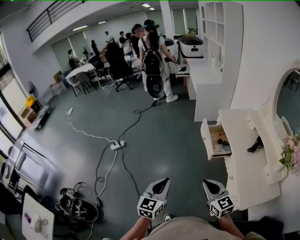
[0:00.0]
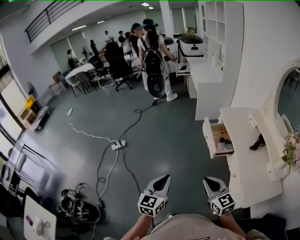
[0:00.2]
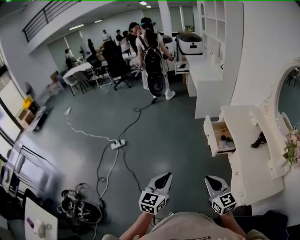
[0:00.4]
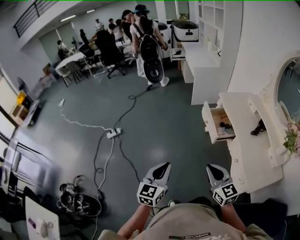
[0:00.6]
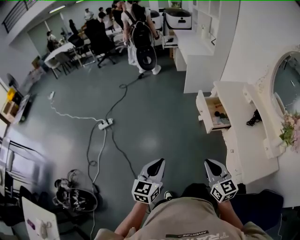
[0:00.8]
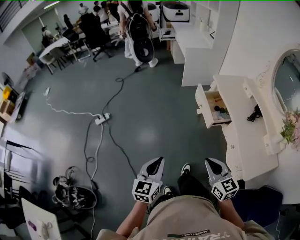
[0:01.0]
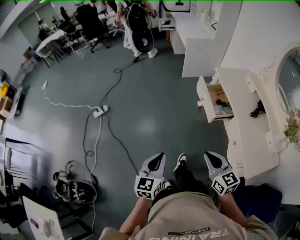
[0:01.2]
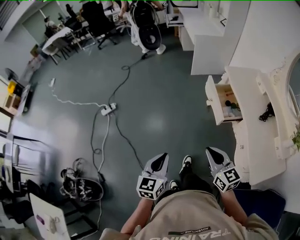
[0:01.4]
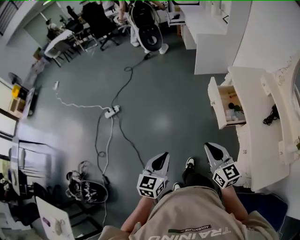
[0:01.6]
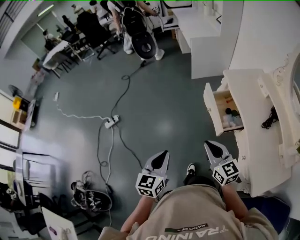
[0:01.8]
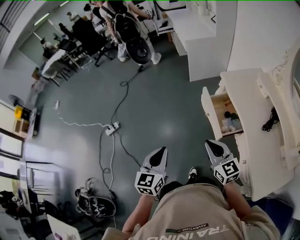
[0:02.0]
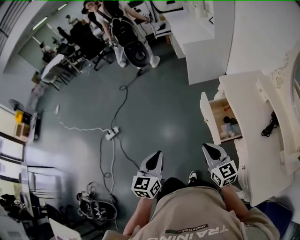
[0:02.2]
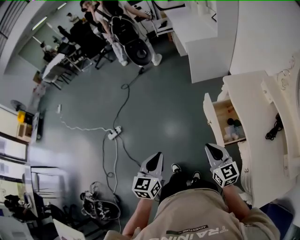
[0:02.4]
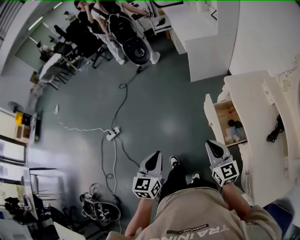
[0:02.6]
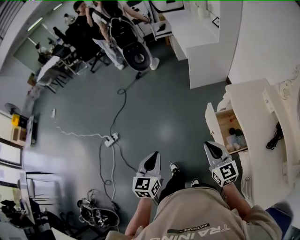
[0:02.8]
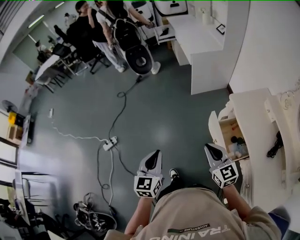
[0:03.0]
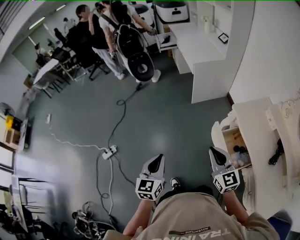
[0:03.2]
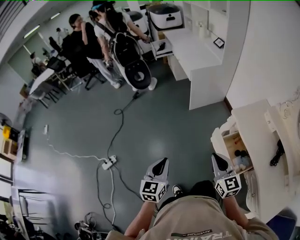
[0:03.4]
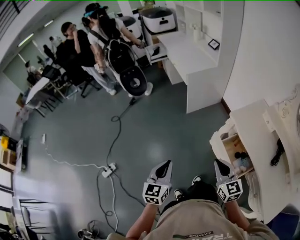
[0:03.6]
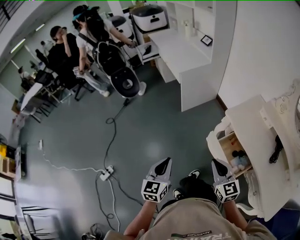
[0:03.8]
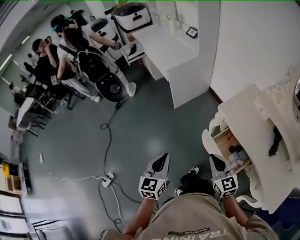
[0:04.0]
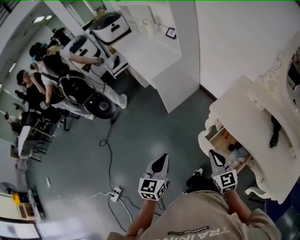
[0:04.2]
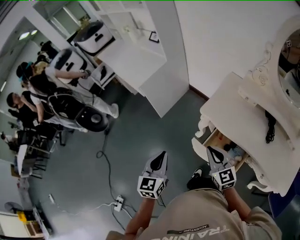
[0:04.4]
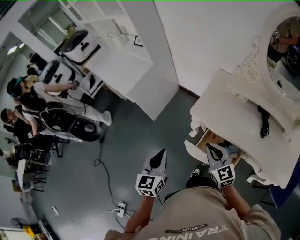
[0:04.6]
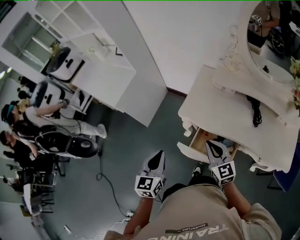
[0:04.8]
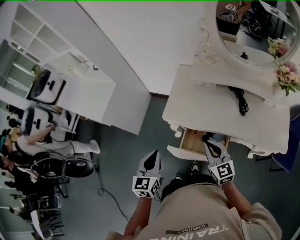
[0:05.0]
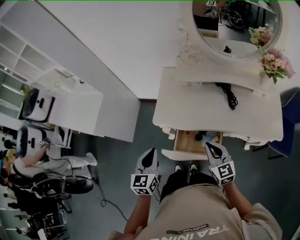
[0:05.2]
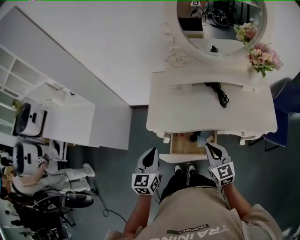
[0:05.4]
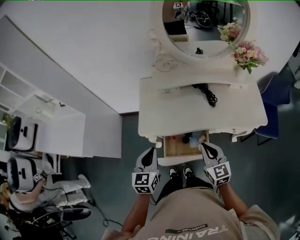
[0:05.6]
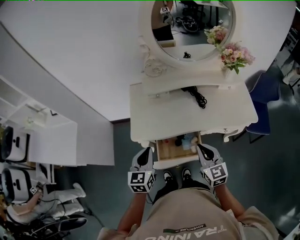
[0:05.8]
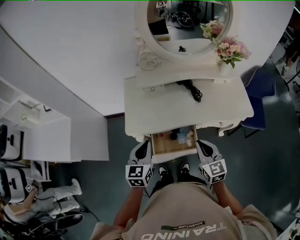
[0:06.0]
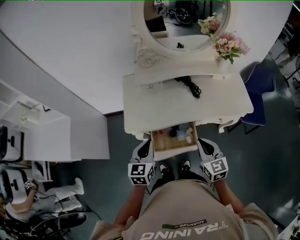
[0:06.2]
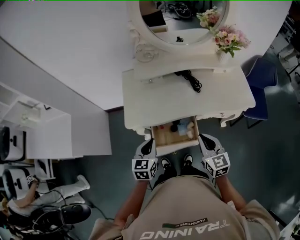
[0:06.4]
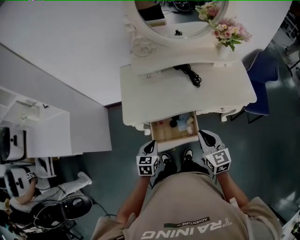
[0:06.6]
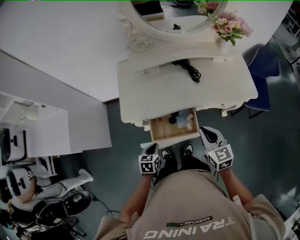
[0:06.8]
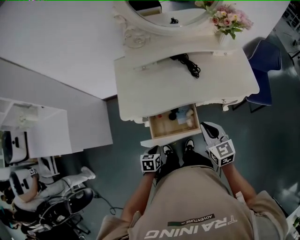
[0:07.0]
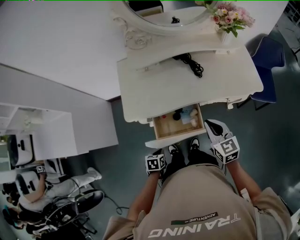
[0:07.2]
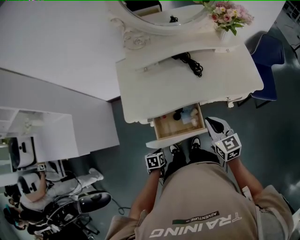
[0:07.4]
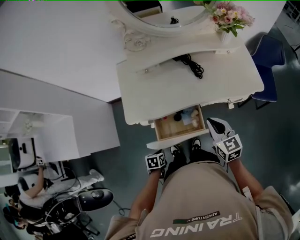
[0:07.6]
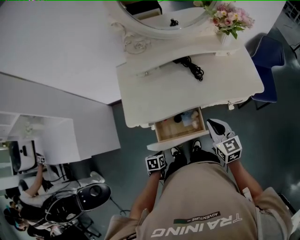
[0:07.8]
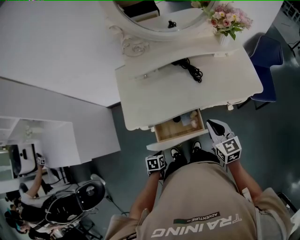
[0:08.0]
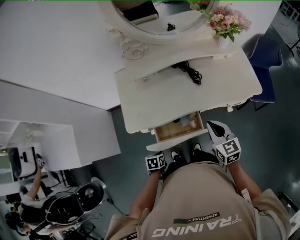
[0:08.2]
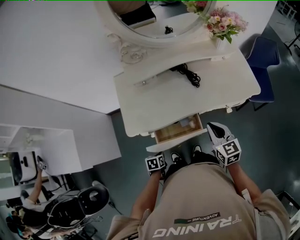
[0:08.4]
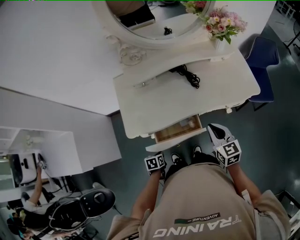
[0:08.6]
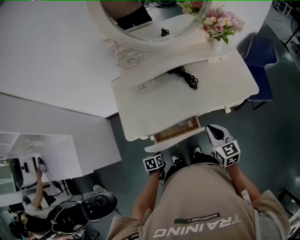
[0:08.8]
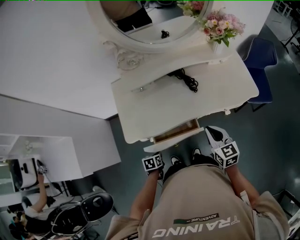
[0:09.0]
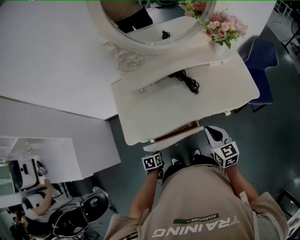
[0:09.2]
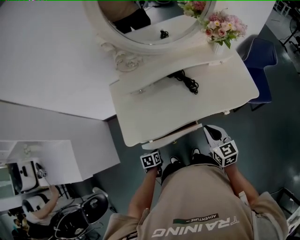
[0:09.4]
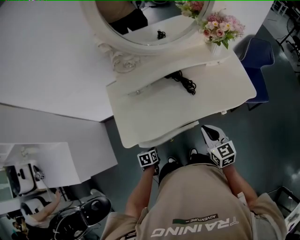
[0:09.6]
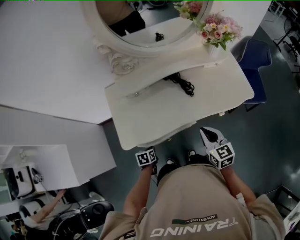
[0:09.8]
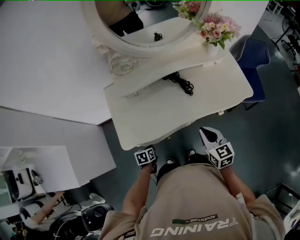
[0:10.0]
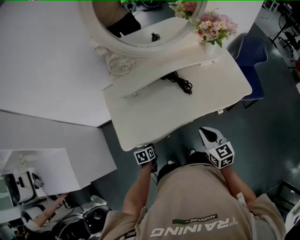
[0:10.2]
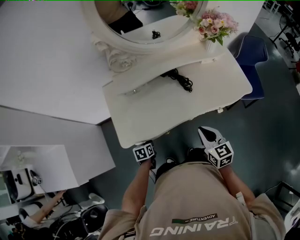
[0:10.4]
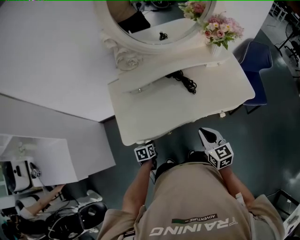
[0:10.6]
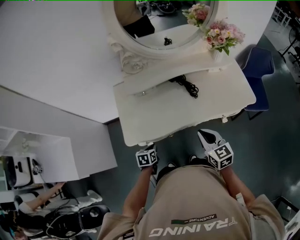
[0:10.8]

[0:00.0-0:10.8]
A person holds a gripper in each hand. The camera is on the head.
0:00.0 to 0:01.6: The right gripper shifts about 15 cm forward. Meanwhile the left gripper travels forward and downward by some 15 cm.
0:01.6 to 0:03.0: Both grippers travel together forward, some 30 cm.
0:03.0 to 0:04.6: The left gripper ends up roughly 35 cm from where it was, and changes its angle by roughly 40 degrees. The right gripper moves roughly 25 cm, and changes its angle by approximately 40 degrees.
0:04.6 to 0:06.2: The left gripper moves some 20 cm, and swivels some 40 degrees, while the right gripper ends up approximately 20 cm from where it was, and changes its angle by some 50 degrees.
0:06.2 to 0:07.8: The left gripper shifts some 25 cm downward, and tips its fingers downward by approximately 40 degrees; the right gripper is displaced forward by some 5 cm.
0:07.8 to 0:09.2: The left gripper goes approximately 10 cm forward.
0:09.2 to 0:10.8: The left gripper moves forward and upward, roughly 10 cm.

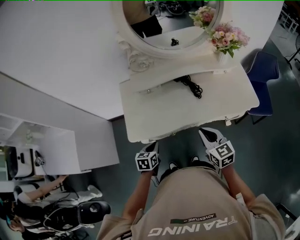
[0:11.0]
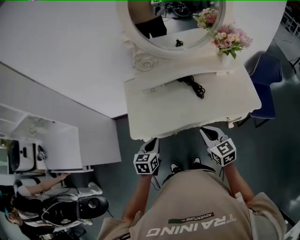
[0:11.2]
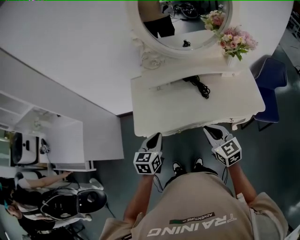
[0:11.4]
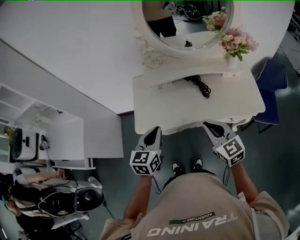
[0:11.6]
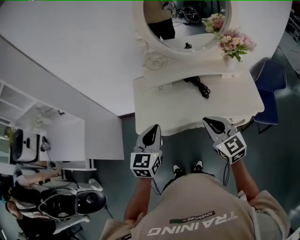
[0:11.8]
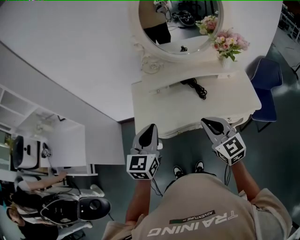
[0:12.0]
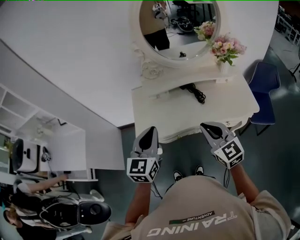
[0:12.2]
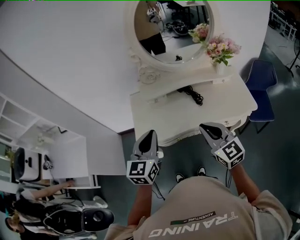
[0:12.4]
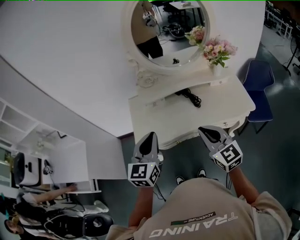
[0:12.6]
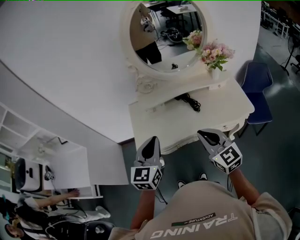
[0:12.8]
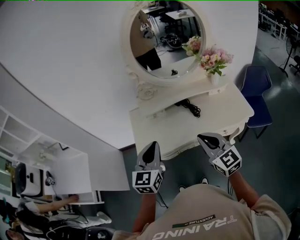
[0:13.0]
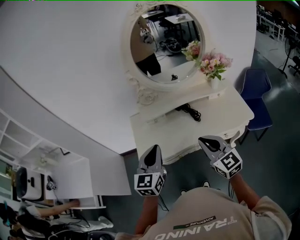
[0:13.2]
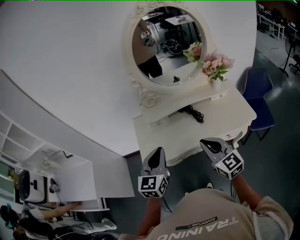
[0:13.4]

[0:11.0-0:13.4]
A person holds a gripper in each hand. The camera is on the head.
0:11.0 to 0:12.2: The left gripper travels upward by approximately 30 cm, and angles its fingers upward, by about 40 degrees. The right gripper moves upward, about 15 cm, and turns by about 20 degrees.
0:12.2 to 0:13.4: The grippers stay close to where they were, moving slightly.

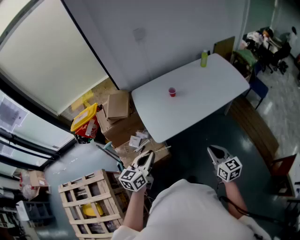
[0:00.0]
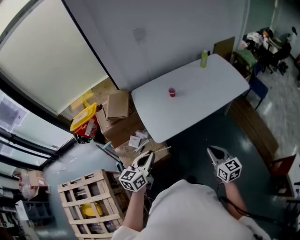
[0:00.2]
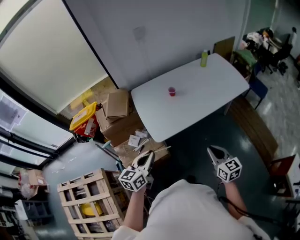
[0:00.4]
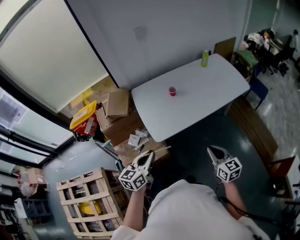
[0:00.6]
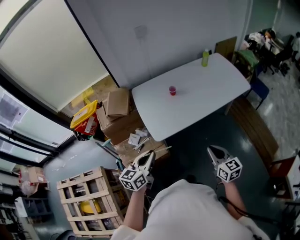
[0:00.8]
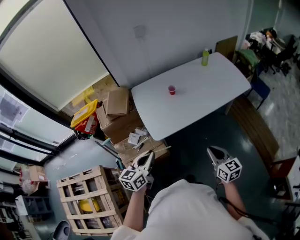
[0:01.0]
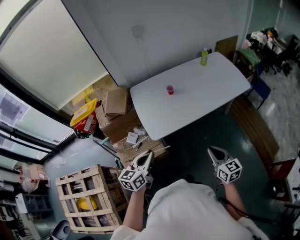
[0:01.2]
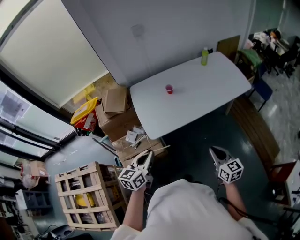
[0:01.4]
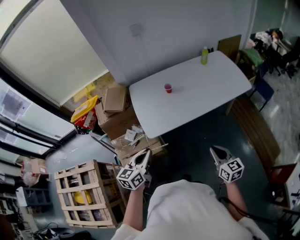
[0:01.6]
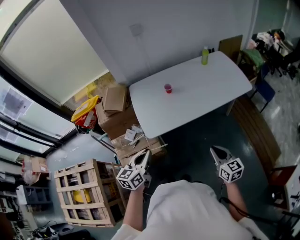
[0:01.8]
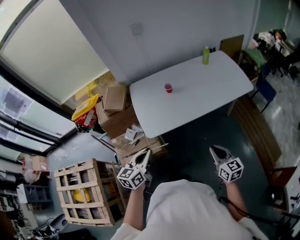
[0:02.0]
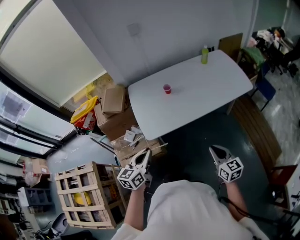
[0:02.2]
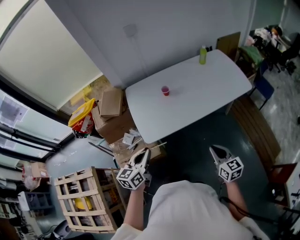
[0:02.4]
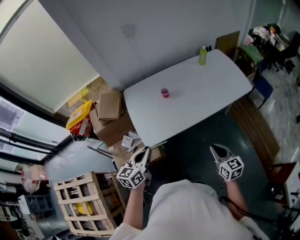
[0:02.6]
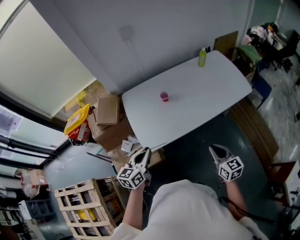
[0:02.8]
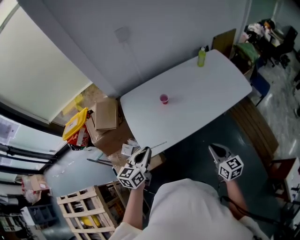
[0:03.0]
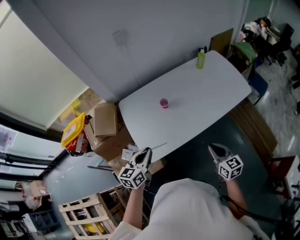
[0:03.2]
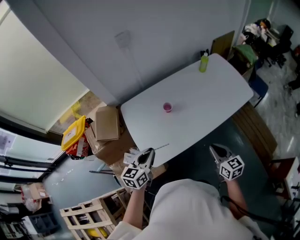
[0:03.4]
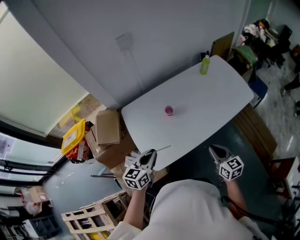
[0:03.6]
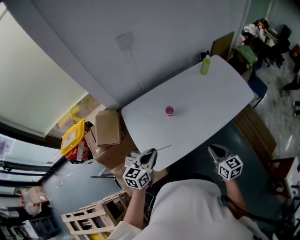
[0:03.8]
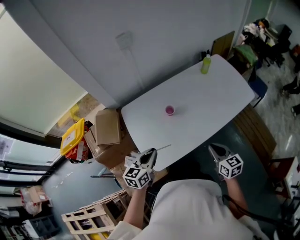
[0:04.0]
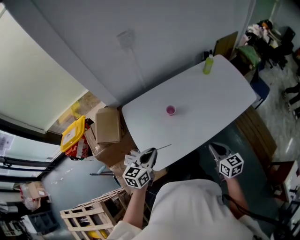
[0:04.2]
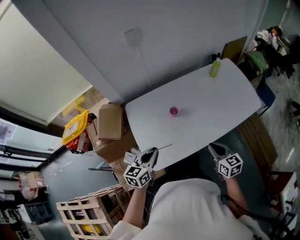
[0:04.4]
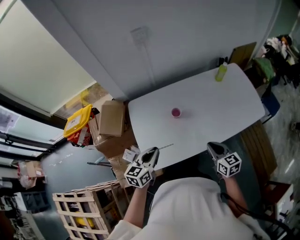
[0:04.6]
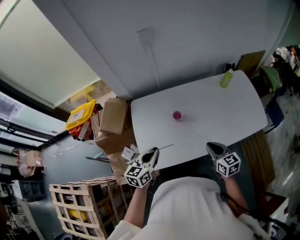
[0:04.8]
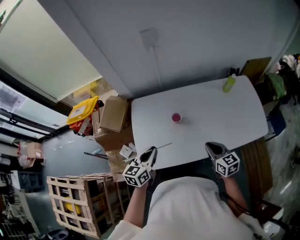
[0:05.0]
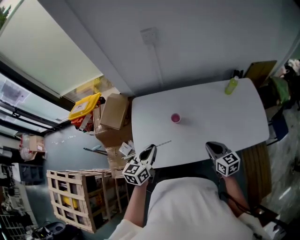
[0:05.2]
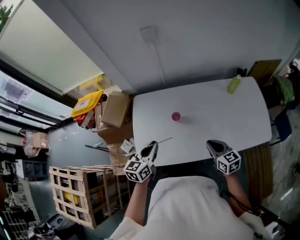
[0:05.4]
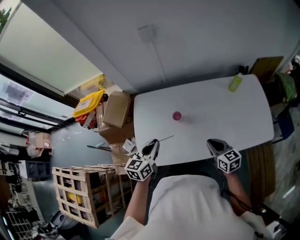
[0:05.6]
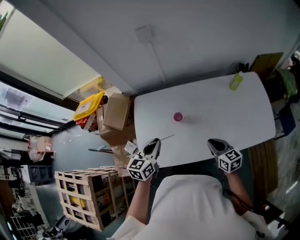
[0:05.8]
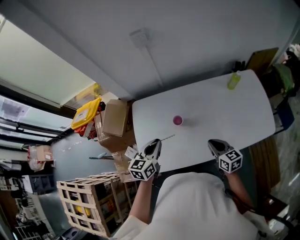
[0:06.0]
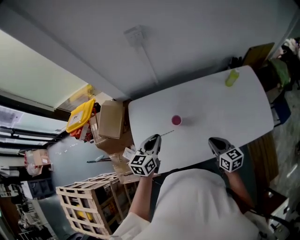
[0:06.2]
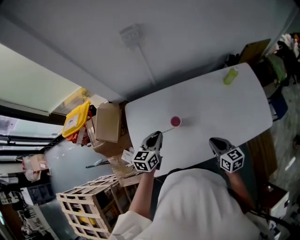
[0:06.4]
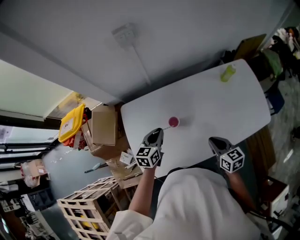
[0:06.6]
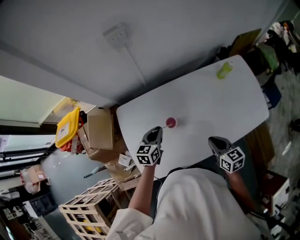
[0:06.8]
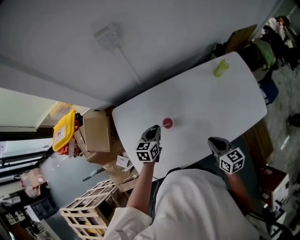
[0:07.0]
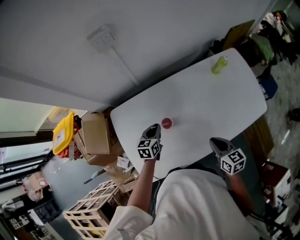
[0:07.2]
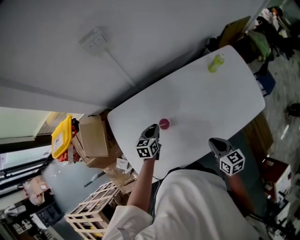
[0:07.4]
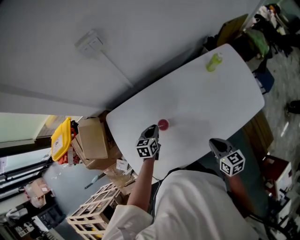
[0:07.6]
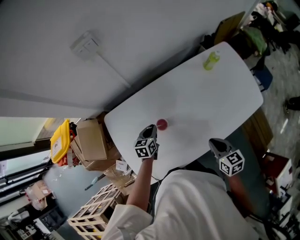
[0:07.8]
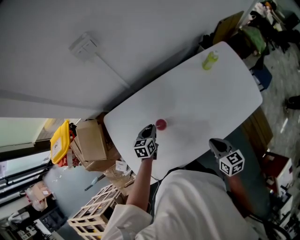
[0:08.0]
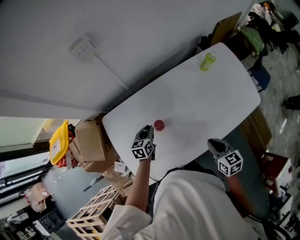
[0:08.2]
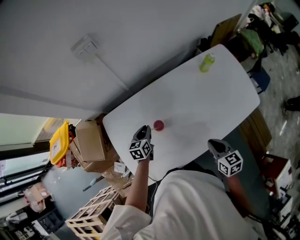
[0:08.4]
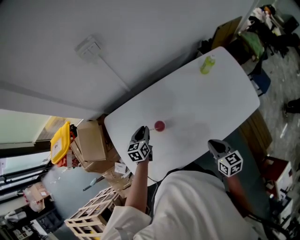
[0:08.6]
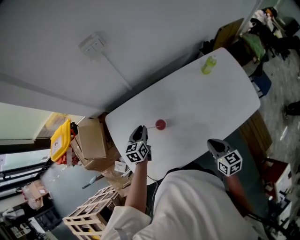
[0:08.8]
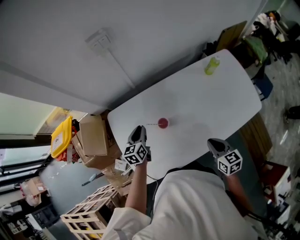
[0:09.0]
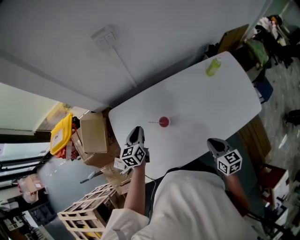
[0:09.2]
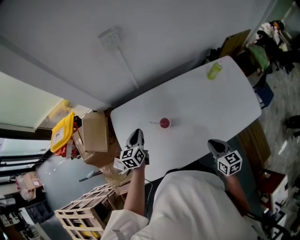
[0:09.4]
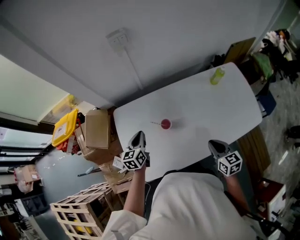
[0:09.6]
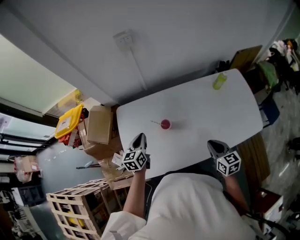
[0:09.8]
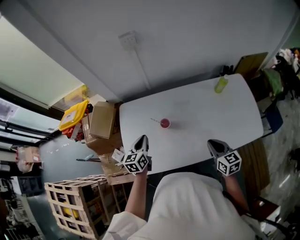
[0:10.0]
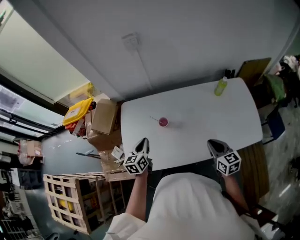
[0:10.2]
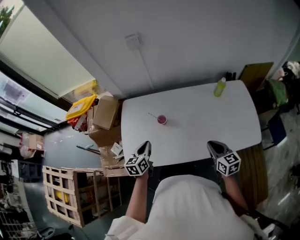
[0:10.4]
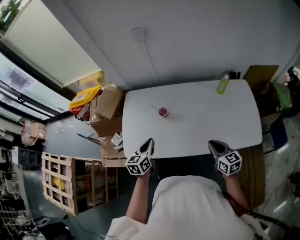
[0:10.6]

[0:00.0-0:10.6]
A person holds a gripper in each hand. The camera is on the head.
0:00.0 to 0:01.6: The two grippers go roughly 10 cm to the right.
0:01.6 to 0:03.0: Both grippers move forward, roughly 15 cm.
0:03.0 to 0:04.6: Both grippers move forward, roughly 15 cm.
0:04.6 to 0:06.0: The grippers both shift forward and to the right by some 10 cm.
0:06.0 to 0:07.6: The left gripper travels downward and forward by some 25 cm, and turns by approximately 20 degrees.
0:07.6 to 0:09.0: The left gripper travels upward and to the left by about 10 cm.
0:09.0 to 0:10.6: The right gripper is displaced to the right by approximately 10 cm, and rotates about 20 degrees. Meanwhile the left gripper heads backward, covering about 25 cm.
